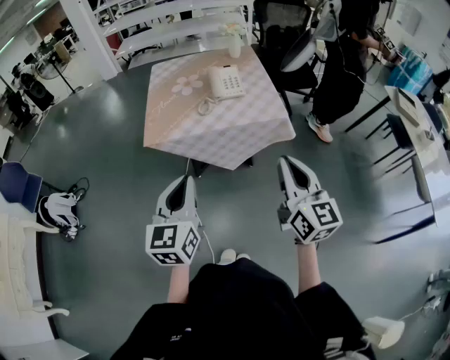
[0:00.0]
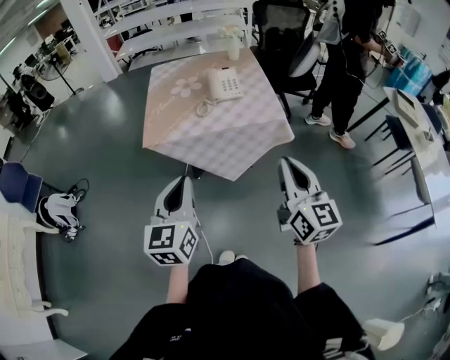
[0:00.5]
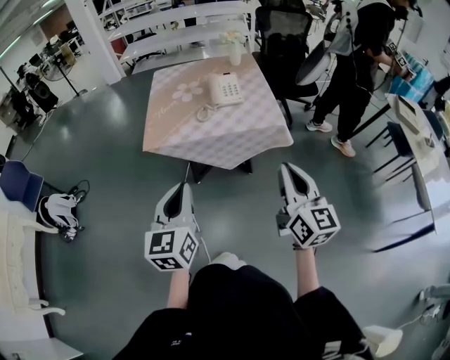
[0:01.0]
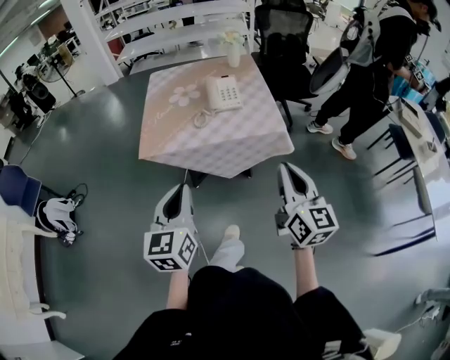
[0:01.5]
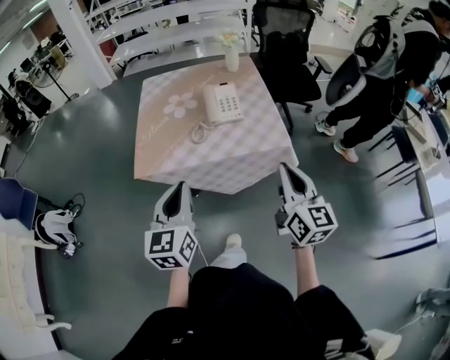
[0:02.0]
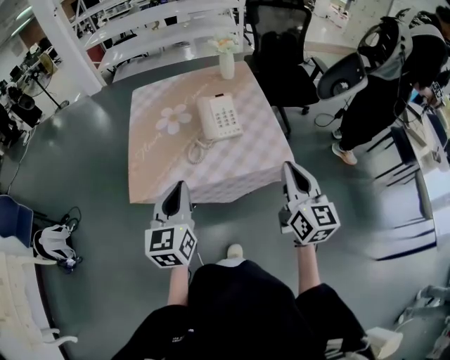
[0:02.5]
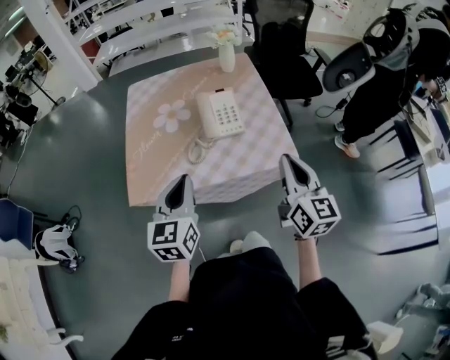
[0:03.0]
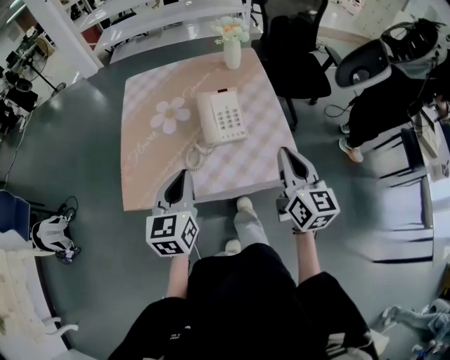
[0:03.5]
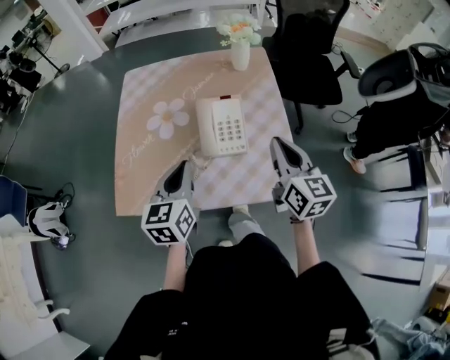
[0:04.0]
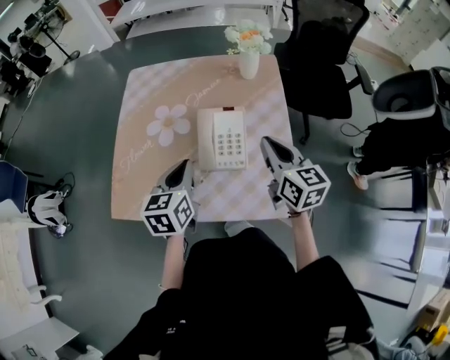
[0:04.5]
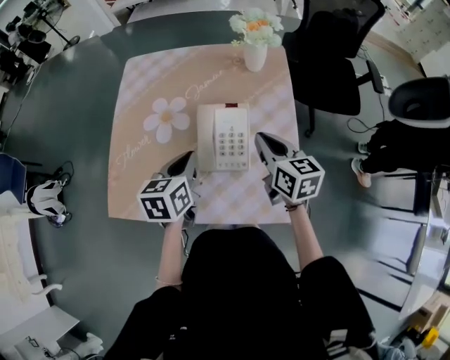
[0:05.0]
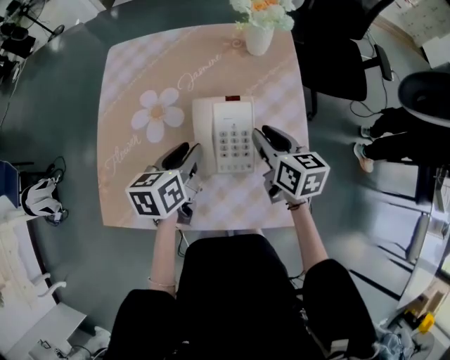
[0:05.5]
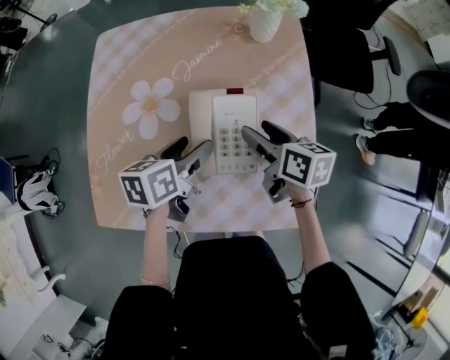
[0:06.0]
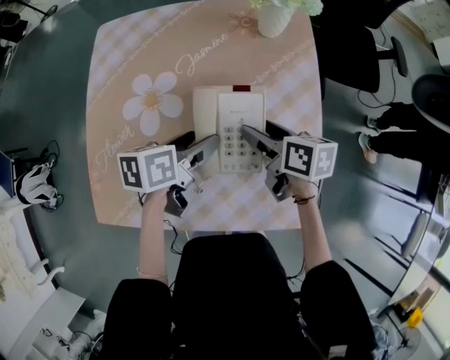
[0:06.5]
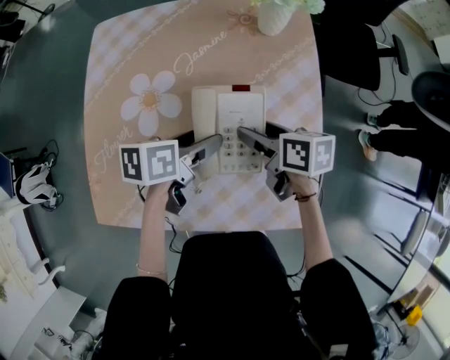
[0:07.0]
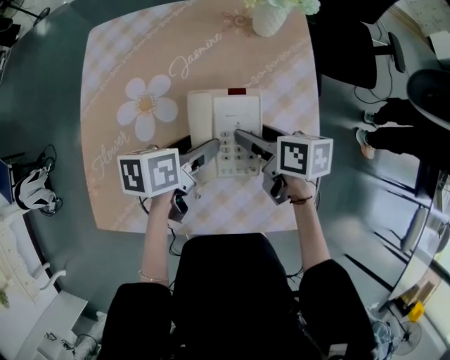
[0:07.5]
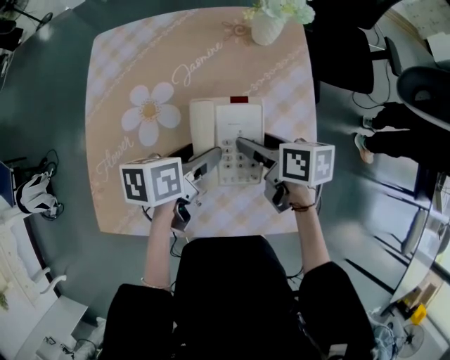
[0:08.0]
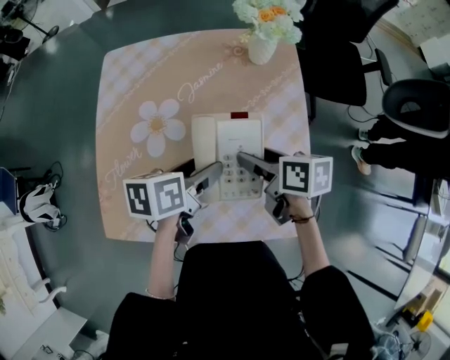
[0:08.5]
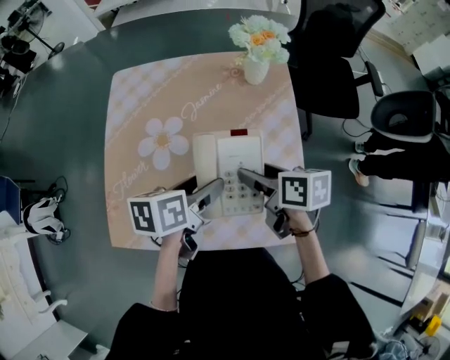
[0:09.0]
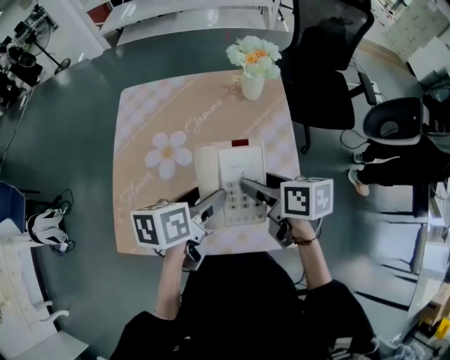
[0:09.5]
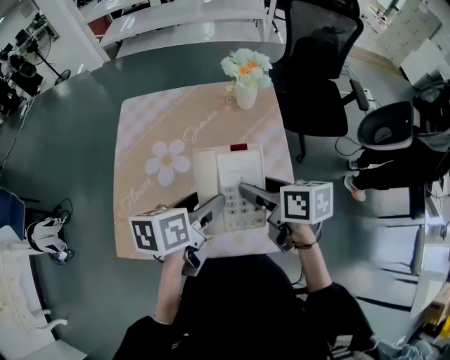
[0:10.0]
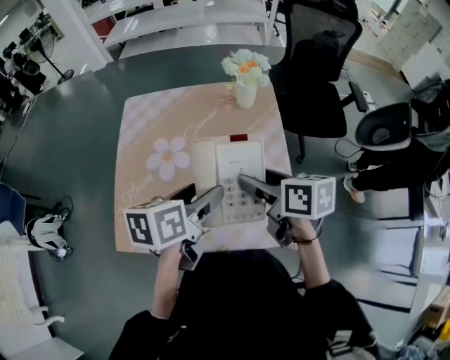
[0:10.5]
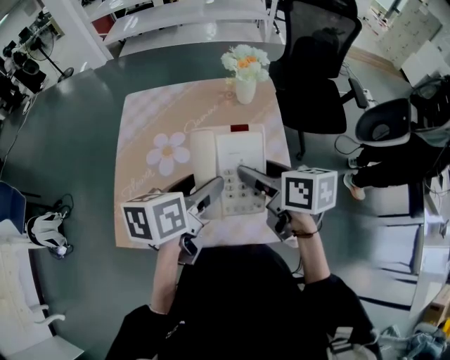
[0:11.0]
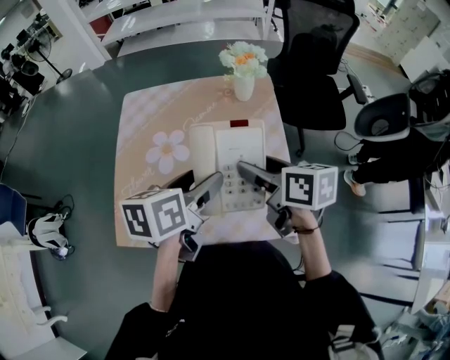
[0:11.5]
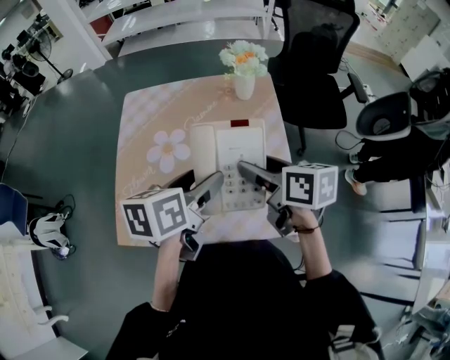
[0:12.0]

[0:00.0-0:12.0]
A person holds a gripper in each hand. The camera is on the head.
0:00.0 to 0:02.0: Both grippers travel together forward, roughly 15 cm.
0:02.0 to 0:04.0: The grippers both shift forward by roughly 30 cm.
0:04.0 to 0:06.0: The grippers both shift downward and forward by approximately 20 cm. The right gripper changes its angle by about 40 degrees, and opens its fingers. Meanwhile the left gripper rotates some 40 degrees, and opens up.
0:06.0 to 0:08.0: The grippers stay close to where they were, moving slightly.
0:08.0 to 0:10.0: The left gripper travels upward and backward by approximately 15 cm; the right gripper shifts some 15 cm upward.
0:10.0 to 0:12.0: The grippers move only a little.

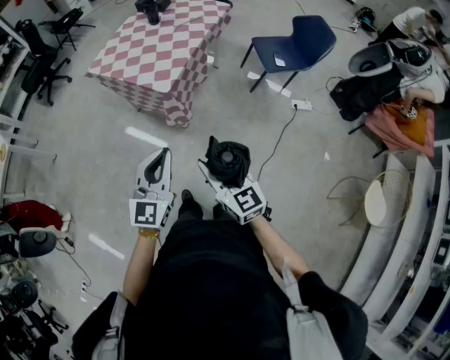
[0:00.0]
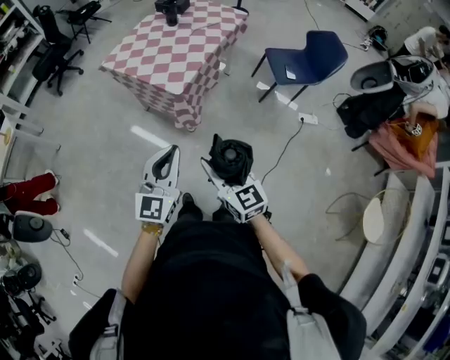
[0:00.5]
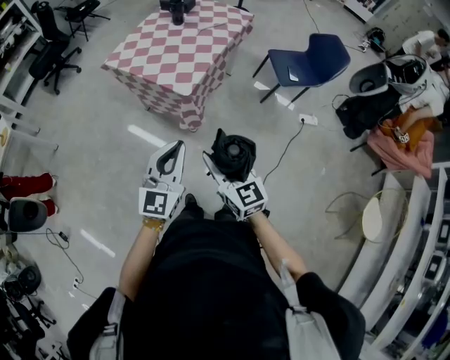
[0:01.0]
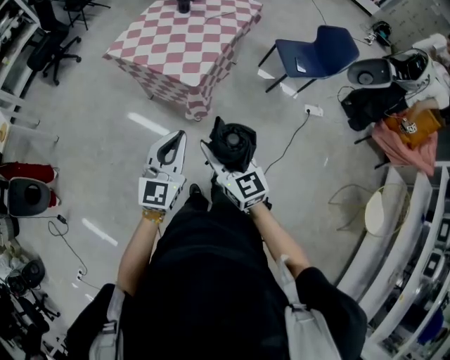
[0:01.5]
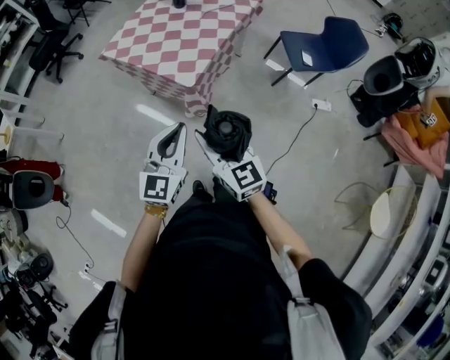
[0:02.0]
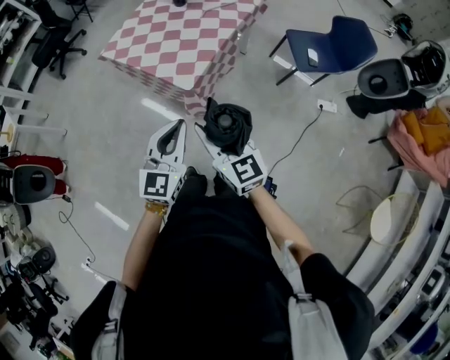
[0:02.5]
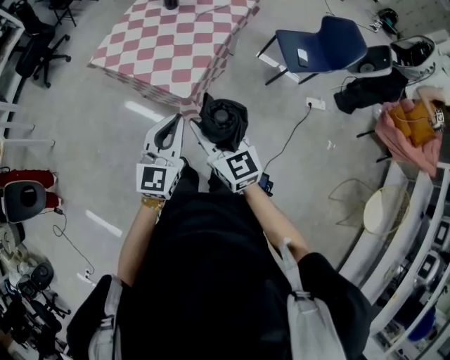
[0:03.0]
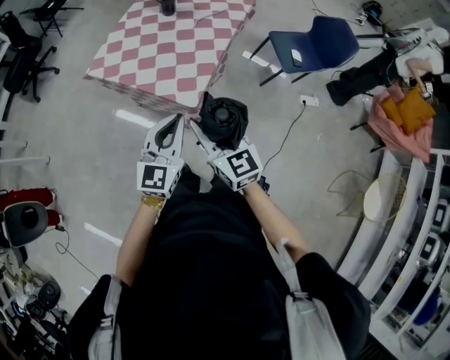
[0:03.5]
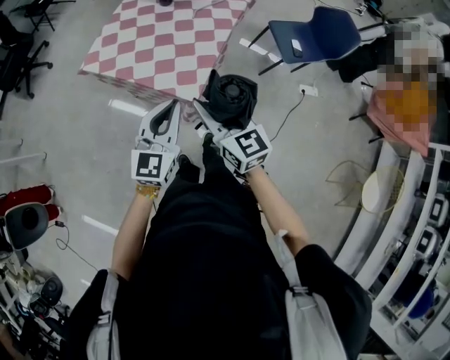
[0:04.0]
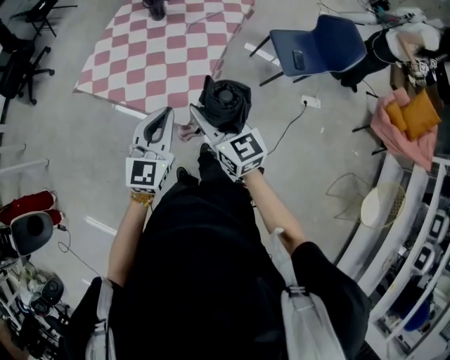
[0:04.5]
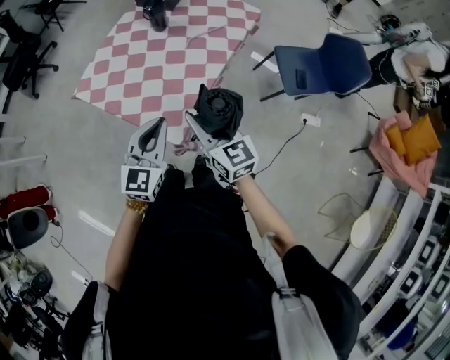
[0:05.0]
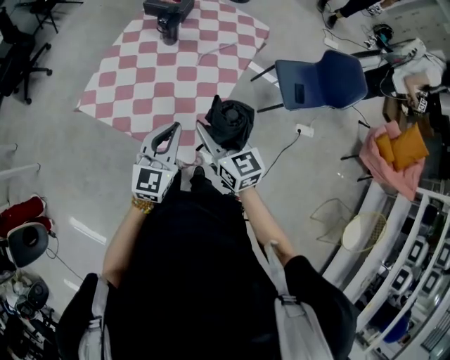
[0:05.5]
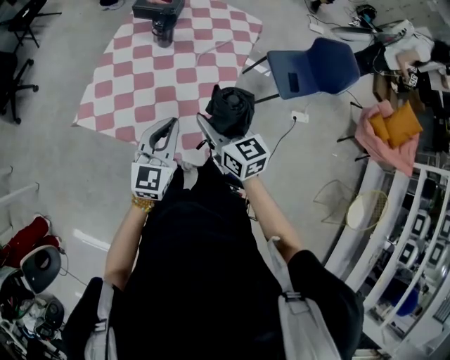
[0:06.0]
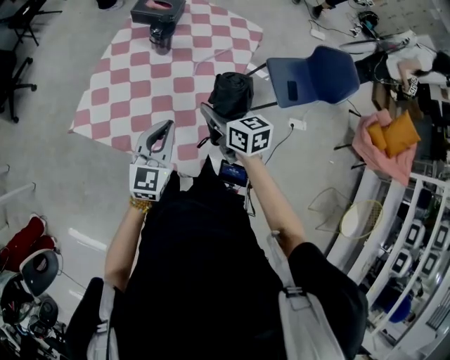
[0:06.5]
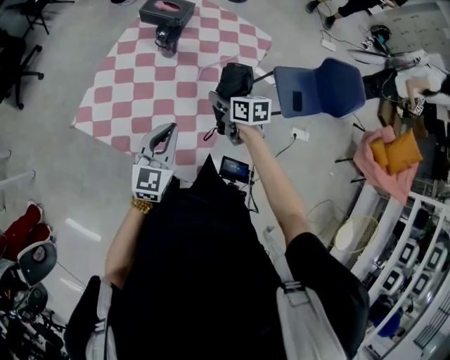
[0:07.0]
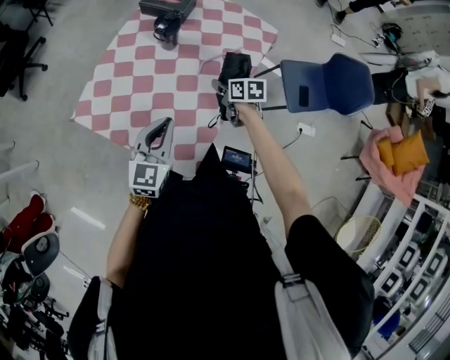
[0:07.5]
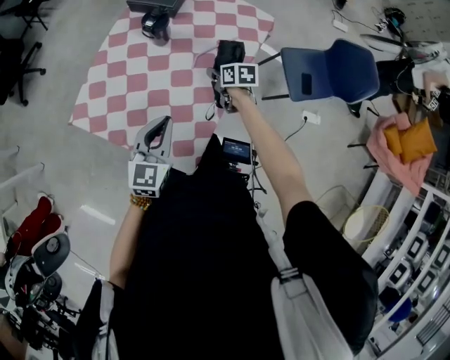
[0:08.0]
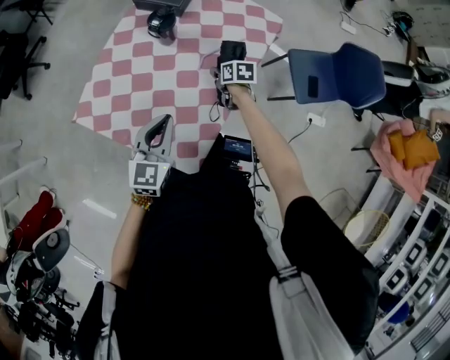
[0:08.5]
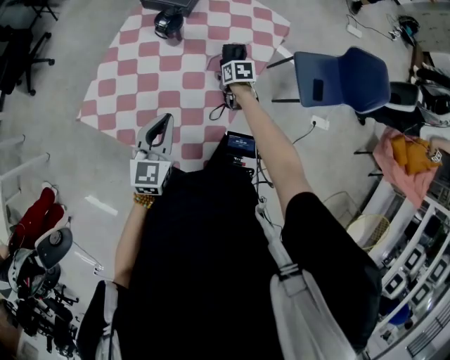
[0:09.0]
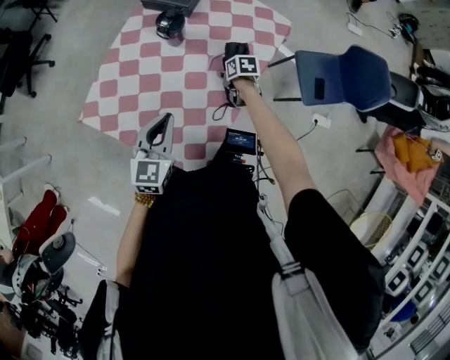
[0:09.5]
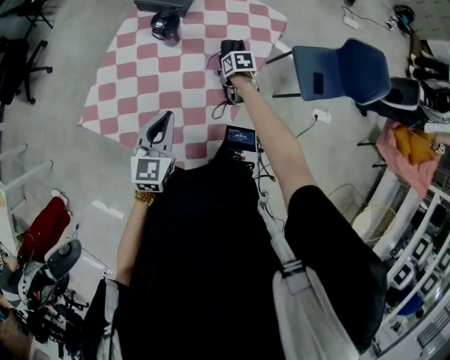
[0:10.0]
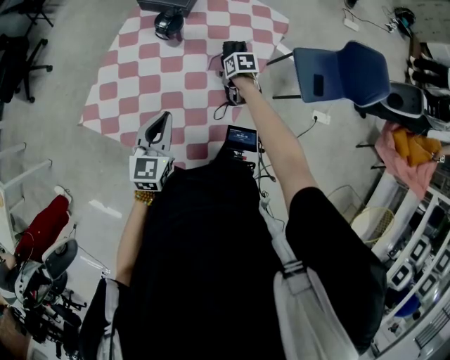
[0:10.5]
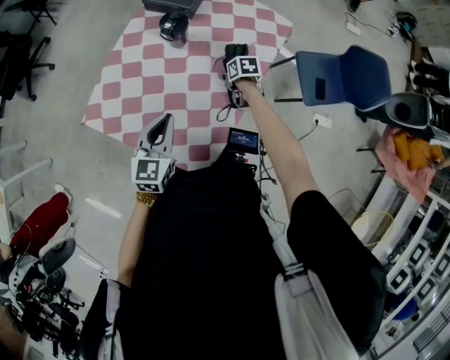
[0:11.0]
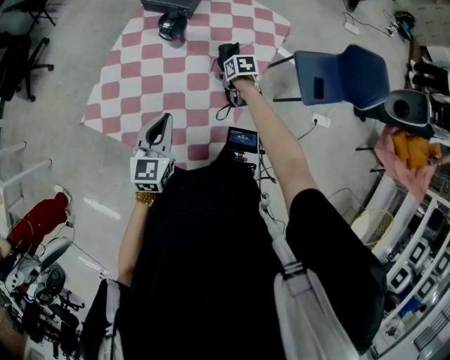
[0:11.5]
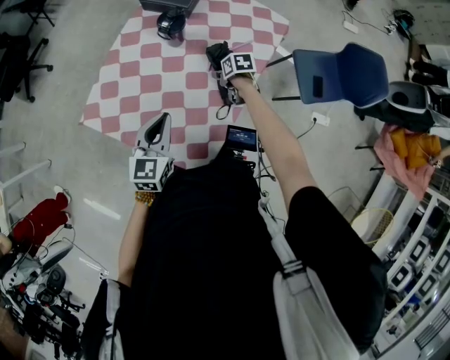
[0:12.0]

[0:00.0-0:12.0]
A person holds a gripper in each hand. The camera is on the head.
0:00.0 to 0:02.0: The left gripper heads forward, covering about 15 cm. Meanwhile the right gripper shifts some 15 cm forward and to the left.
0:02.0 to 0:04.0: The right gripper goes roughly 20 cm forward; the left gripper travels forward and to the left by about 20 cm.
0:04.0 to 0:06.0: Both grippers travel together forward, roughly 25 cm.
0:06.0 to 0:08.0: The left gripper shifts approximately 10 cm forward and to the right. The right gripper travels forward, downward and to the right by some 35 cm, and changes its angle by about 40 degrees.
0:08.0 to 0:10.0: The left gripper shifts by roughly 5 cm. Meanwhile the right gripper travels downward by roughly 10 cm.
0:10.0 to 0:12.0: The grippers move only a little.

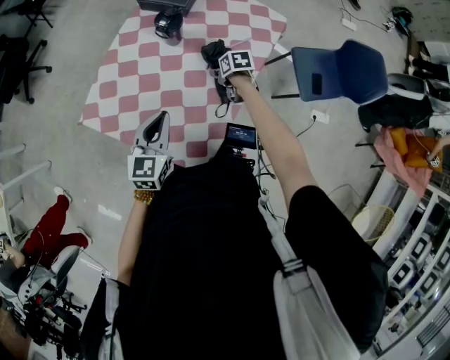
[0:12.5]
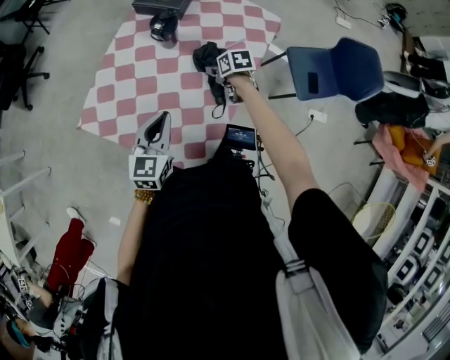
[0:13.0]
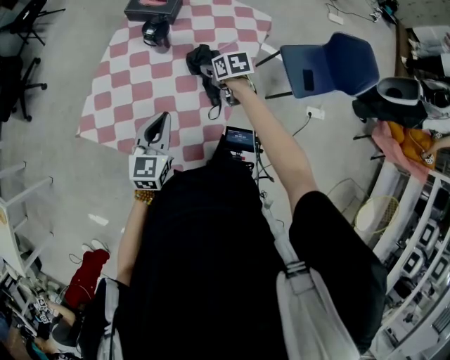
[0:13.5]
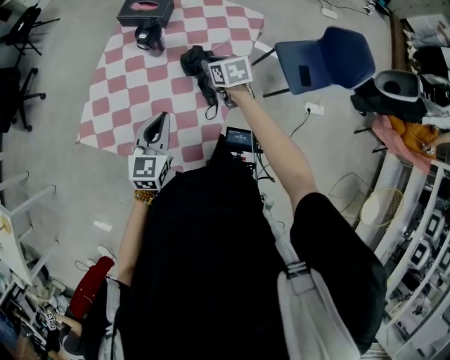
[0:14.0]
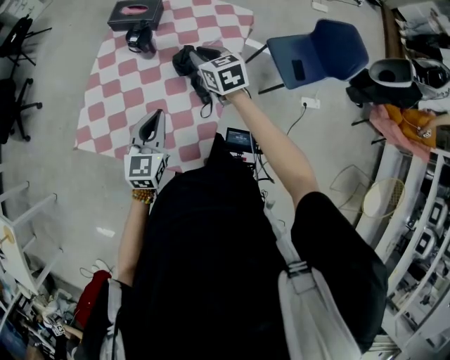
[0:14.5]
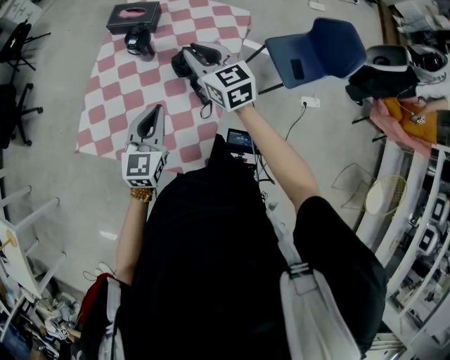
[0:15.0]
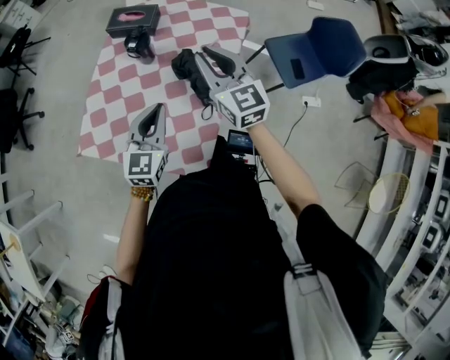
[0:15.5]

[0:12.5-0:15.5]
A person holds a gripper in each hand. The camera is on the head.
0:12.5 to 0:14.0: The right gripper travels upward by approximately 15 cm, rotates roughly 30 degrees, and closes.
0:14.0 to 0:15.5: The left gripper shifts by approximately 5 cm; the right gripper shifts some 20 cm upward, and tilts its fingers some 40 degrees upward.
